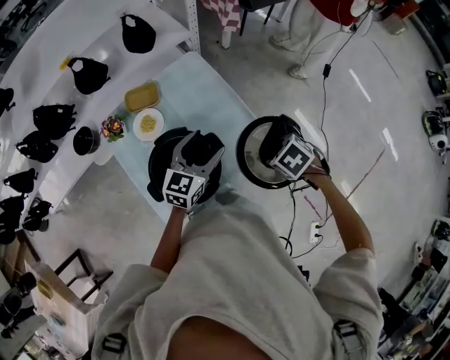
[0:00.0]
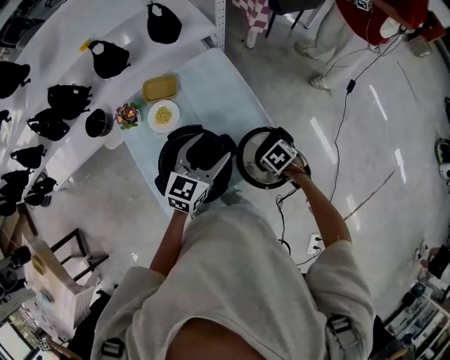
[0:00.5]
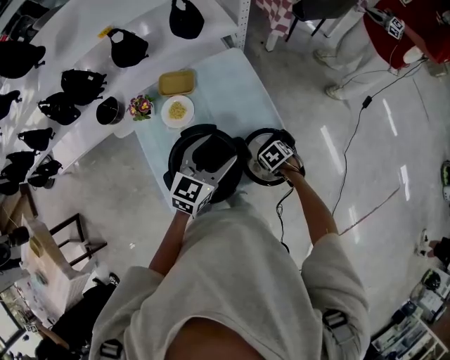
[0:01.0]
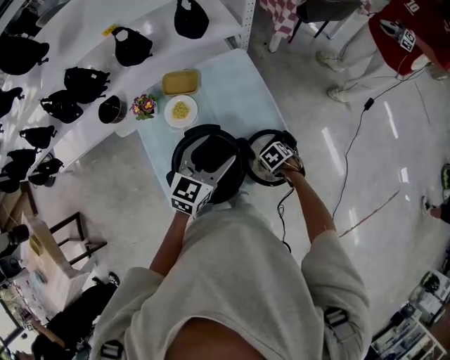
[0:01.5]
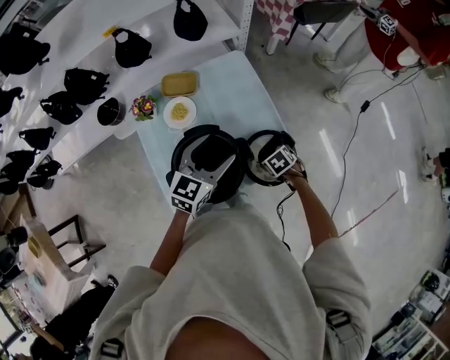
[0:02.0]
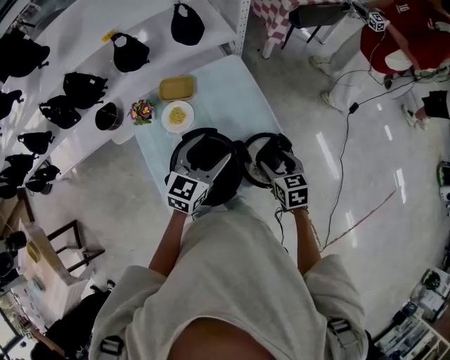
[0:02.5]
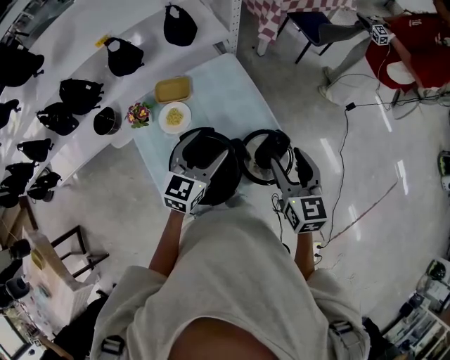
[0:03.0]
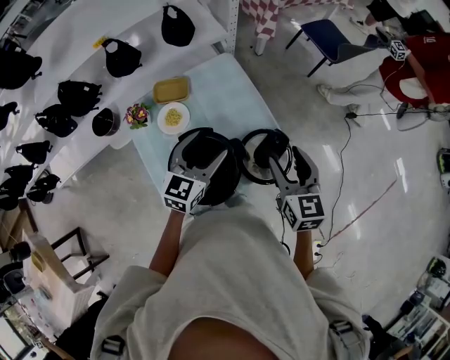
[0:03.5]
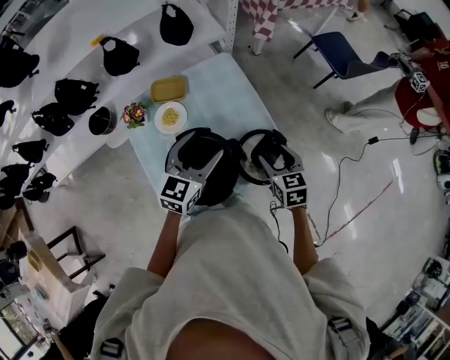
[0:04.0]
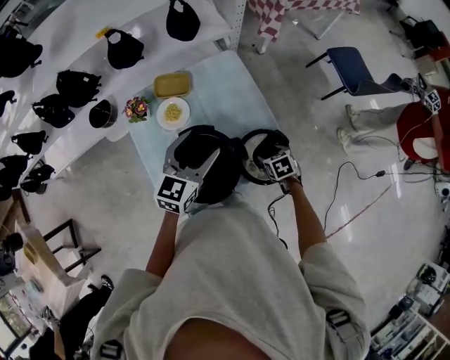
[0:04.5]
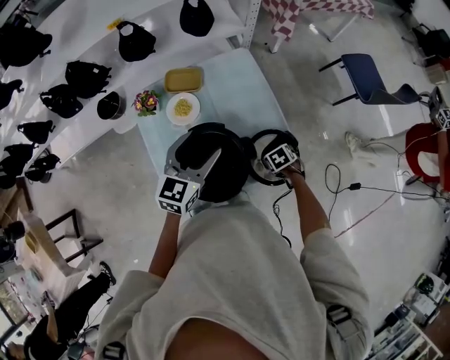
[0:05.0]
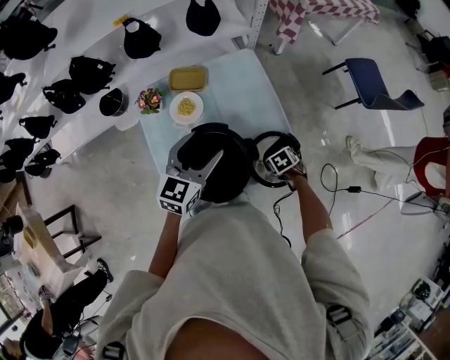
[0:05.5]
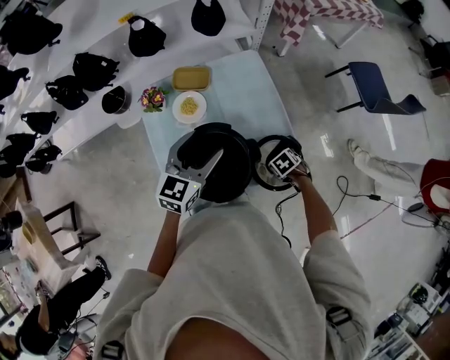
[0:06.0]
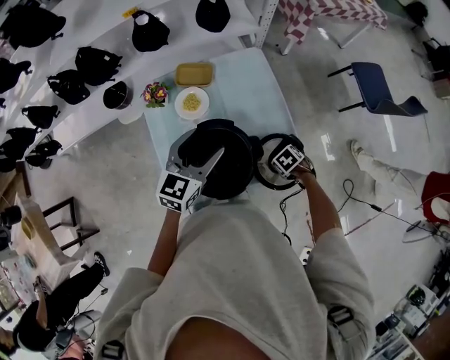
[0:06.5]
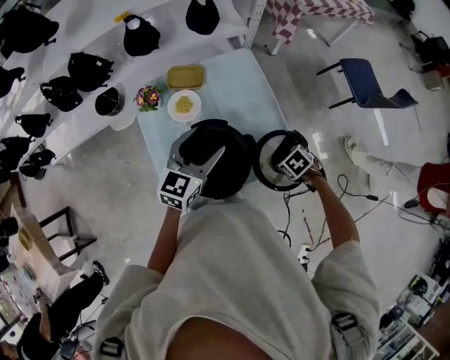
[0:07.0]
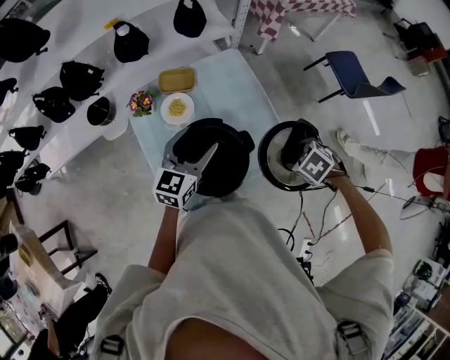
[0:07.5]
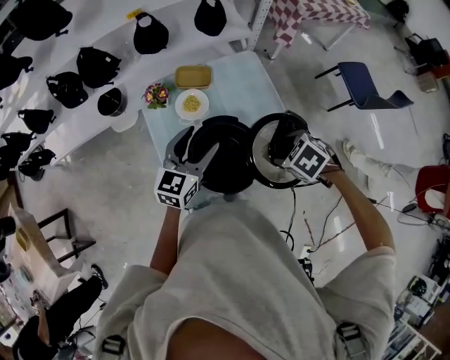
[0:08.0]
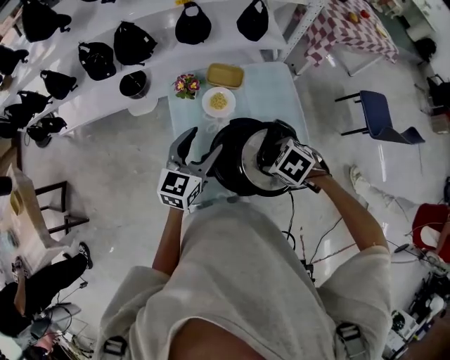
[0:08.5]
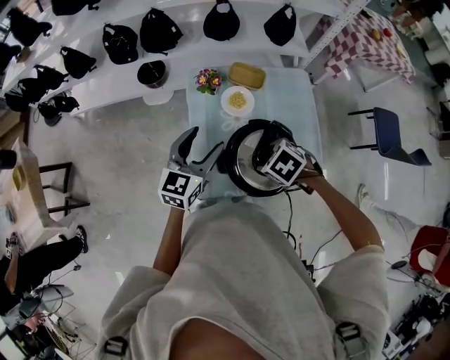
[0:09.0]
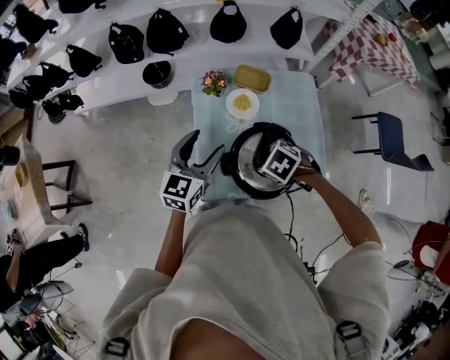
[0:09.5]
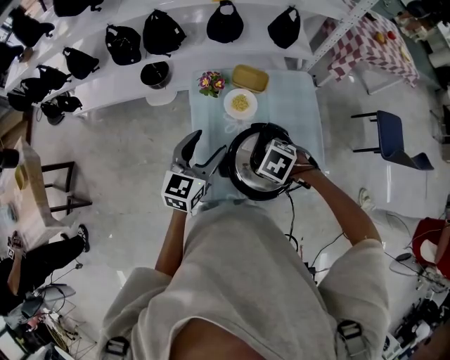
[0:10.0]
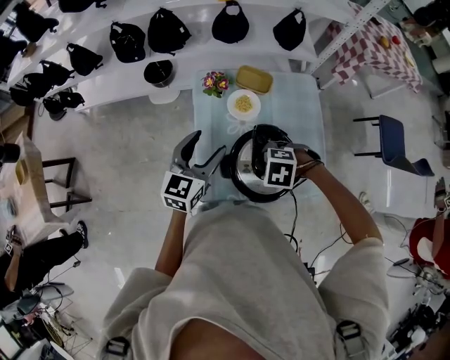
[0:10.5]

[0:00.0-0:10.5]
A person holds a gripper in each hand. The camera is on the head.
0:00.0 to 0:02.0: The left gripper ends up roughly 5 cm from where it was; the right gripper goes some 20 cm downward.
0:02.0 to 0:04.0: The right gripper moves upward, roughly 15 cm, and angles its fingers upward, by some 40 degrees.
0:04.0 to 0:06.5: The right gripper goes some 20 cm downward, and points its fingers approximately 40 degrees further downward. The left gripper ends up about 5 cm from where it was.
0:06.5 to 0:08.5: The left gripper ends up some 15 cm from where it was; the right gripper heads upward, covering some 20 cm, and swivels some 30 degrees.
0:08.5 to 0:10.5: The right gripper ends up about 10 cm from where it was, and rotates about 30 degrees, while the left gripper ends up some 5 cm from where it was.

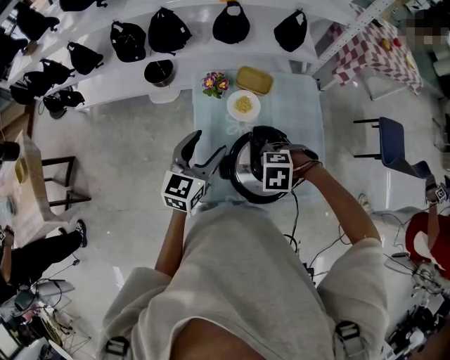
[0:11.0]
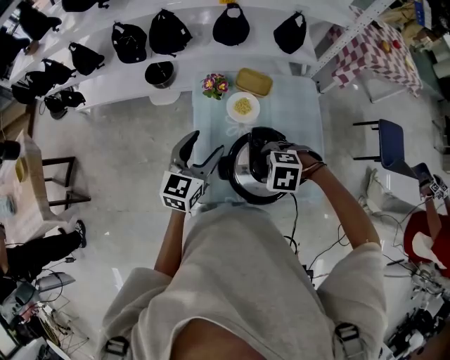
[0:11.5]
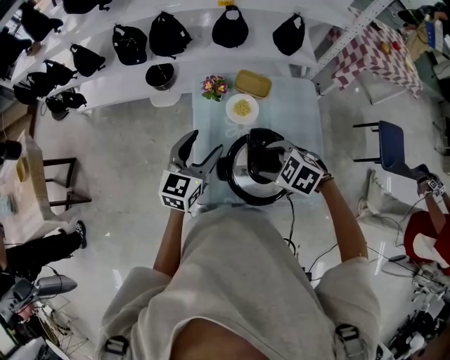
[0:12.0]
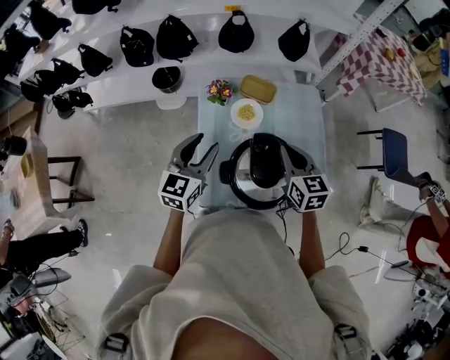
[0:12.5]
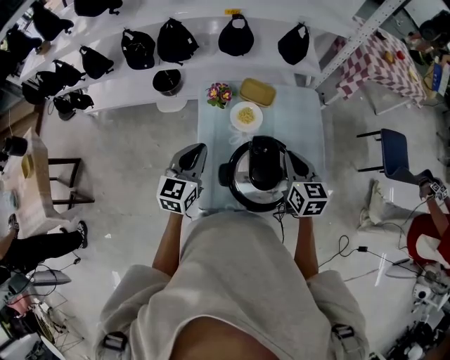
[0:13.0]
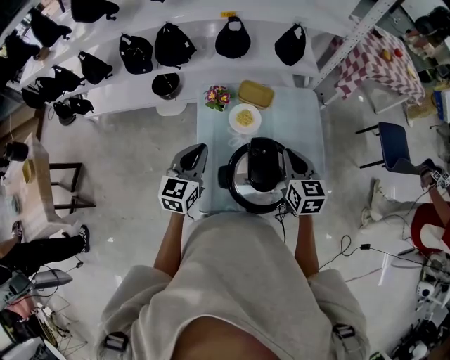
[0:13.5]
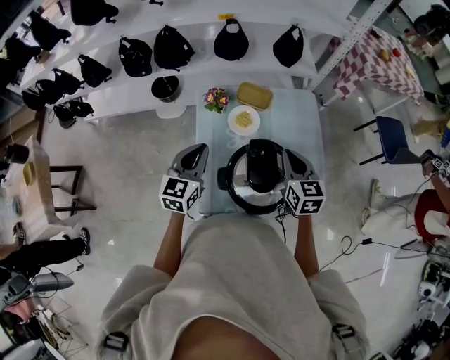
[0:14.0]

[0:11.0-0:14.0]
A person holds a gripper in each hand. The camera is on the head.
0:11.0 to 0:12.5: The right gripper changes place by approximately 15 cm, angles its fingers upward, by approximately 60 degrees, and closes its fingers, while the left gripper closes its fingers.
0:12.5 to 0:14.0: The left gripper closes its fingers.

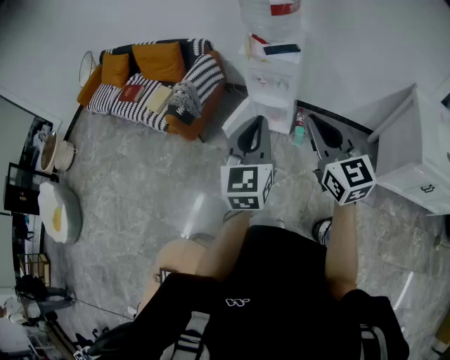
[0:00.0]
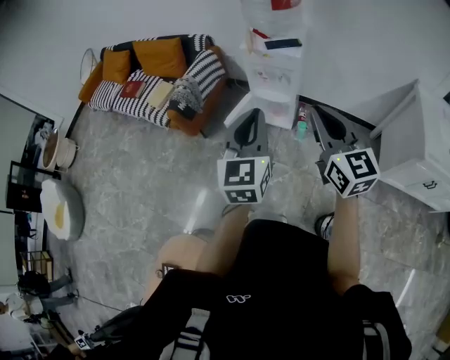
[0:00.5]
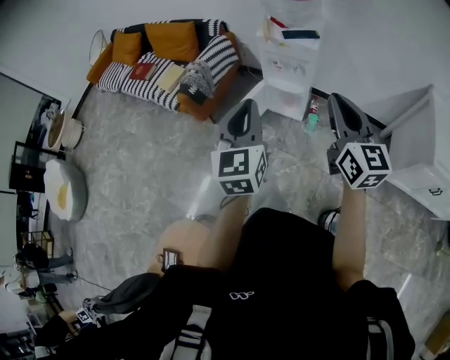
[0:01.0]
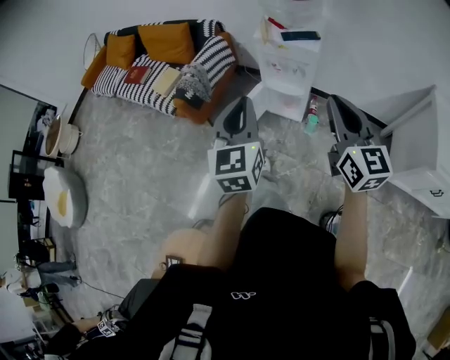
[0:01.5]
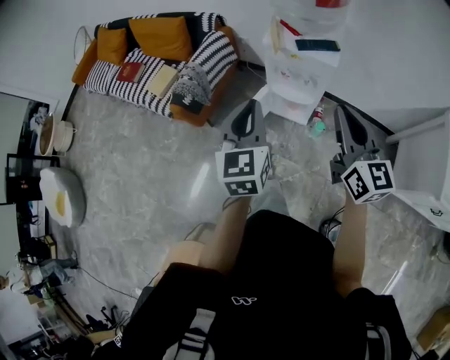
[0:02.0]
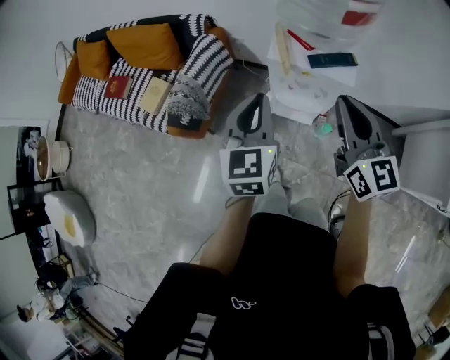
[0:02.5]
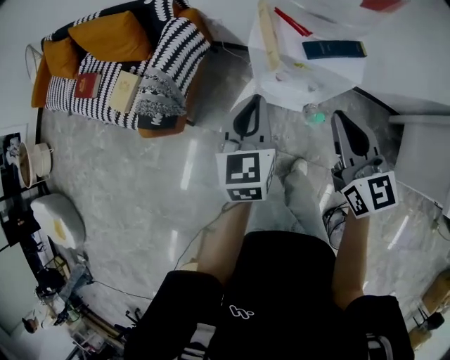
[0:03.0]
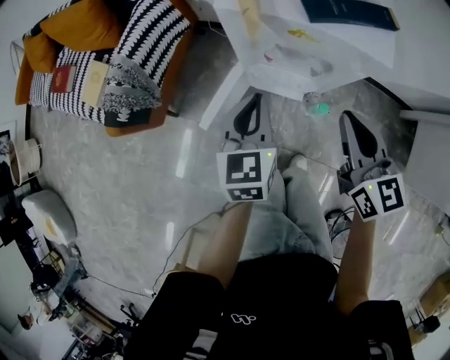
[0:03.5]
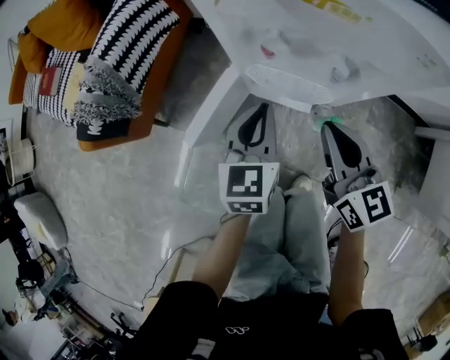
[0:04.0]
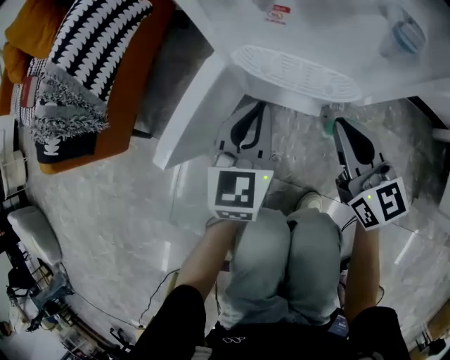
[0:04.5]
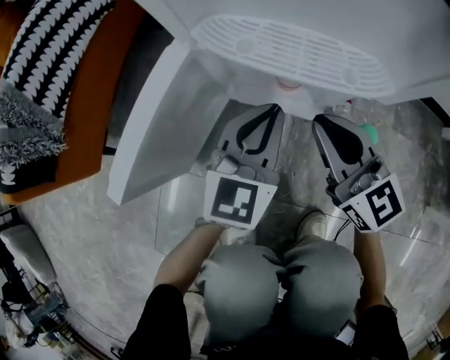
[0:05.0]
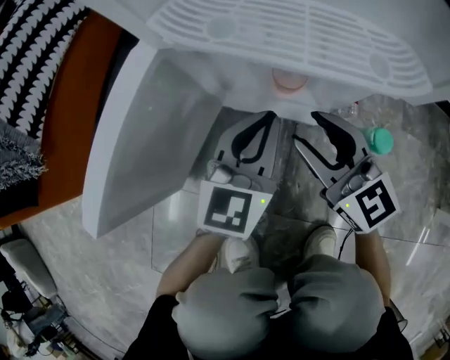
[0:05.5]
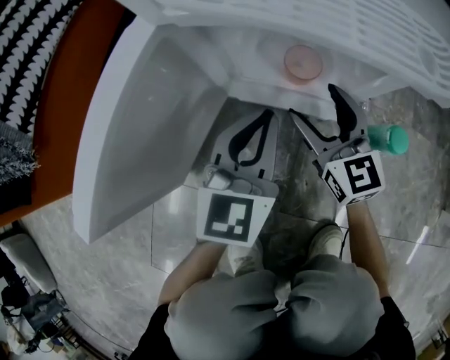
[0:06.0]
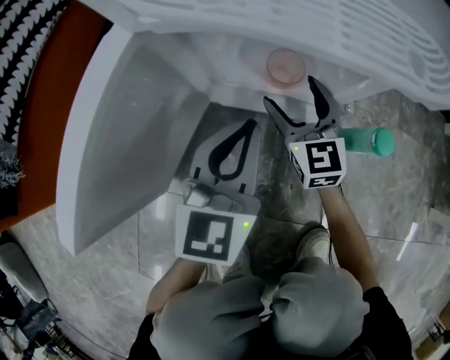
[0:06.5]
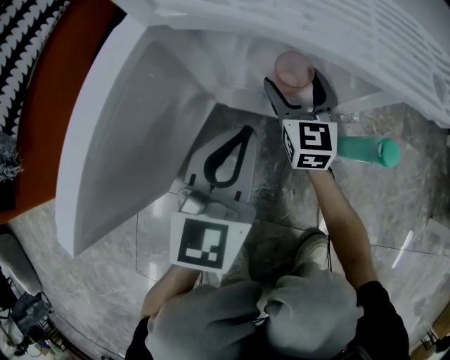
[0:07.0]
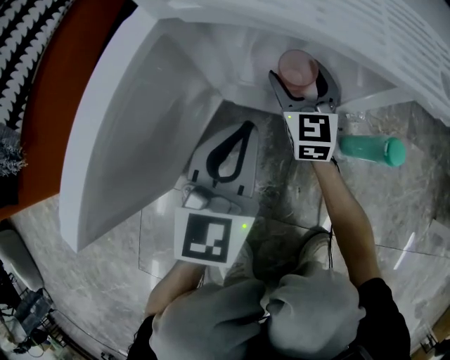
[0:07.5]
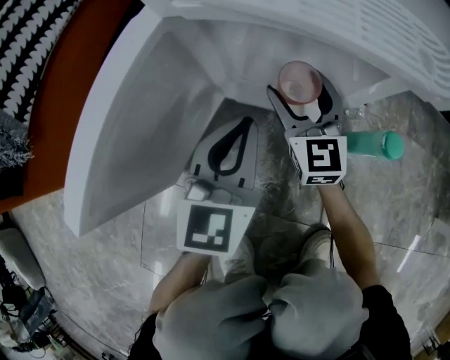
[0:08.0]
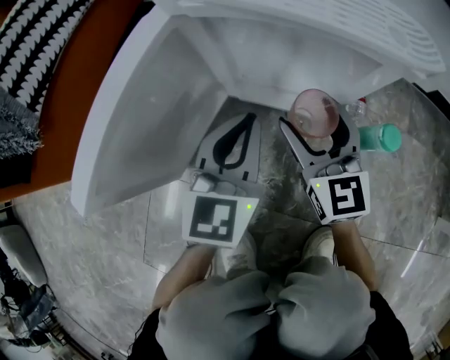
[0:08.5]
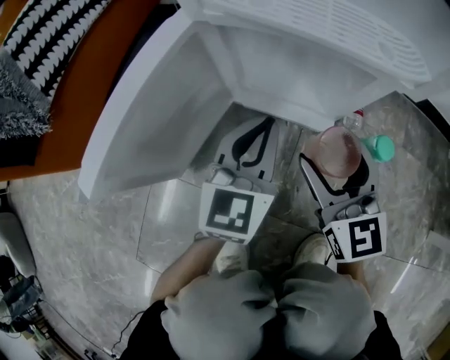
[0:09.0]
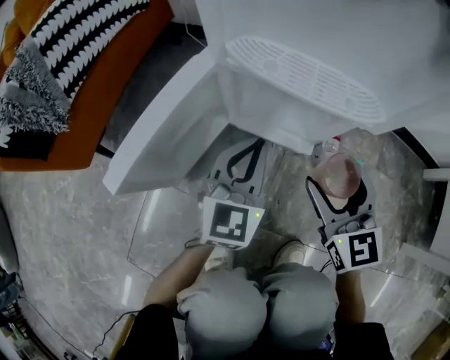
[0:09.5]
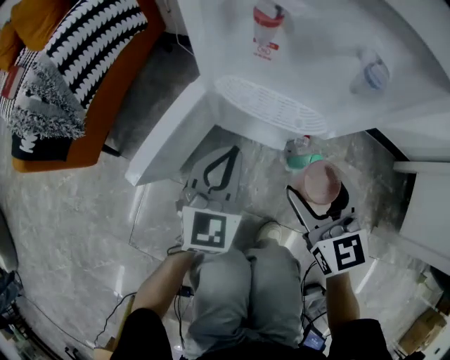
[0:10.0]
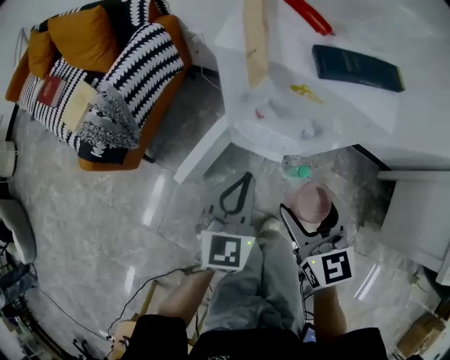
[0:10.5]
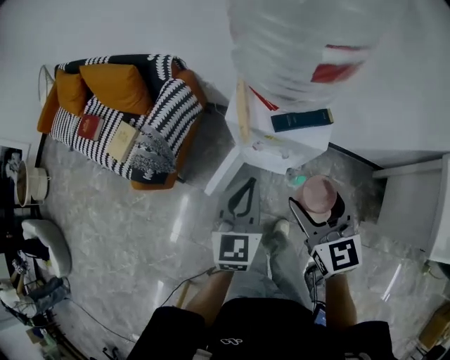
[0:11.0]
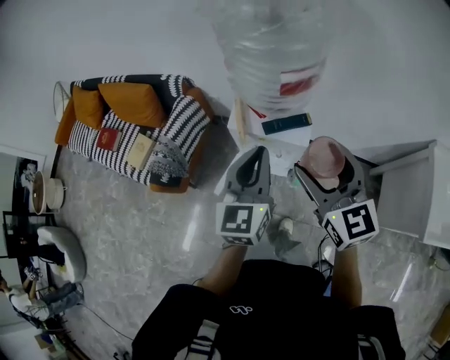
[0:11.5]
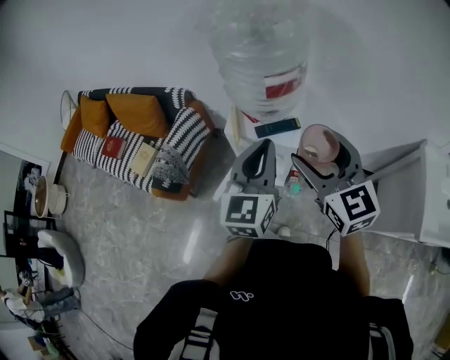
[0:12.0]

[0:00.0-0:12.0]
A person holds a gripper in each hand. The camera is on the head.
0:00.0 to 0:02.0: The grippers both shift forward by roughly 20 cm.
0:02.0 to 0:04.0: The grippers both shift downward and forward by about 50 cm.
0:04.0 to 0:06.0: The grippers both shift downward by roughly 25 cm. The right gripper opens its fingers.
0:08.0 to 0:10.0: The right gripper shifts some 30 cm upward and backward, while the left gripper heads upward, covering roughly 20 cm.
0:10.0 to 0:12.0: The grippers both shift upward by about 70 cm. The left gripper turns by about 20 degrees.

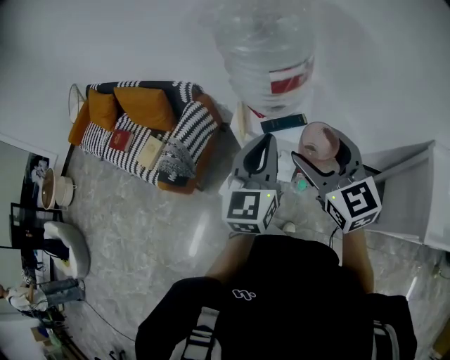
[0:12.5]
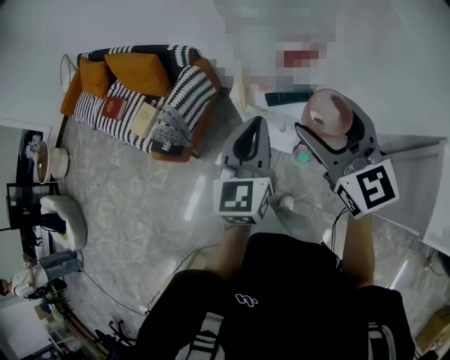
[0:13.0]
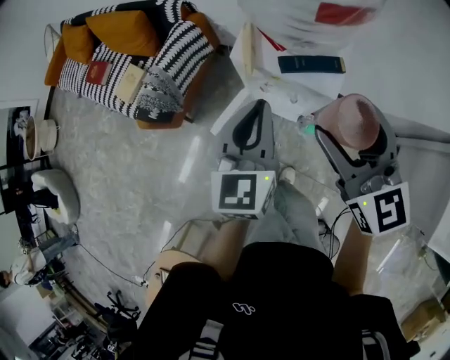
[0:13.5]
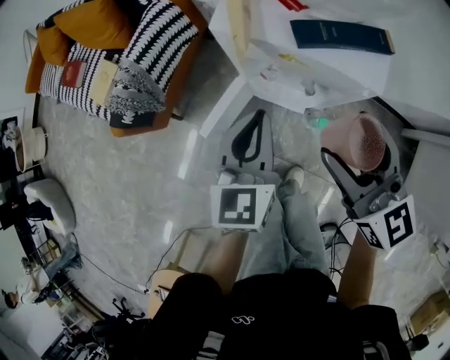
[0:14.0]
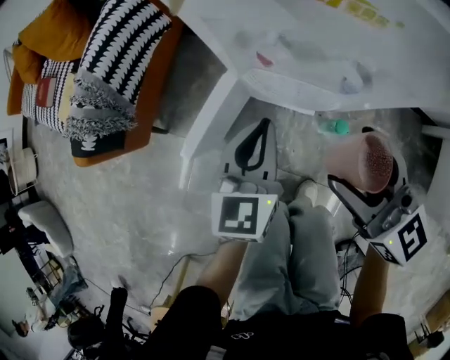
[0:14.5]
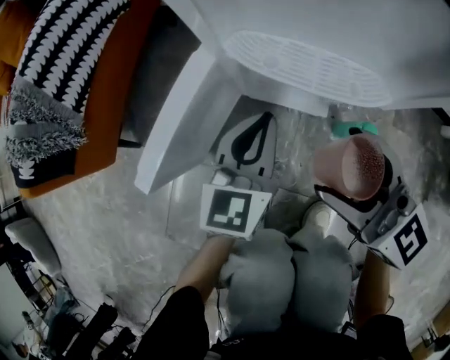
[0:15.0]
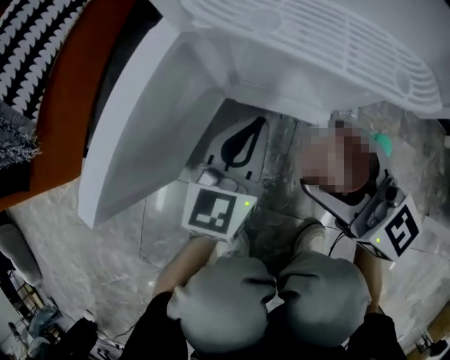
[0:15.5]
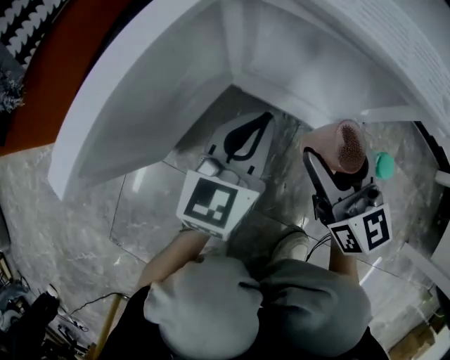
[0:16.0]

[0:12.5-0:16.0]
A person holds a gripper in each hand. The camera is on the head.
0:12.5 to 0:14.5: Both grippers travel together downward, some 50 cm. The right gripper swivels some 20 degrees.
0:14.5 to 0:16.0: Both grippers travel together downward, approximately 35 cm.
